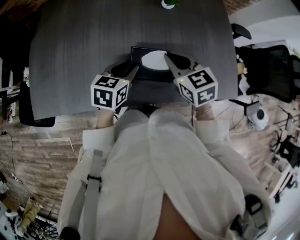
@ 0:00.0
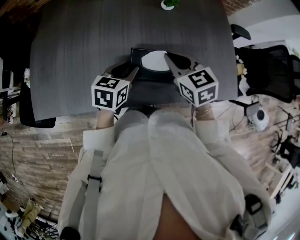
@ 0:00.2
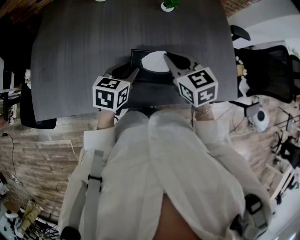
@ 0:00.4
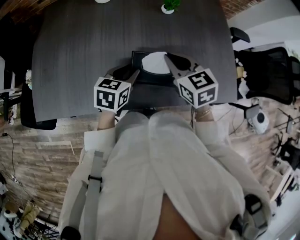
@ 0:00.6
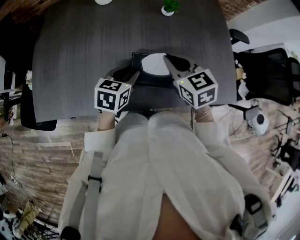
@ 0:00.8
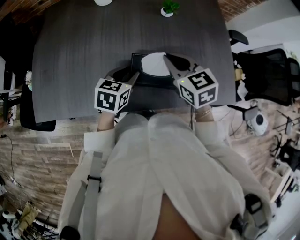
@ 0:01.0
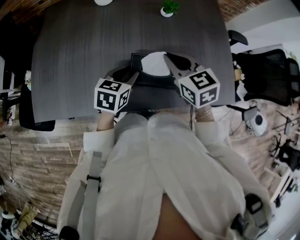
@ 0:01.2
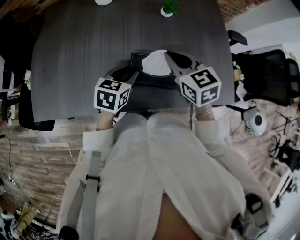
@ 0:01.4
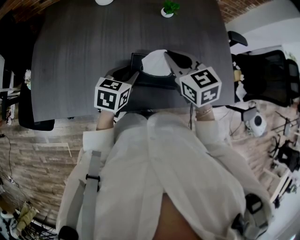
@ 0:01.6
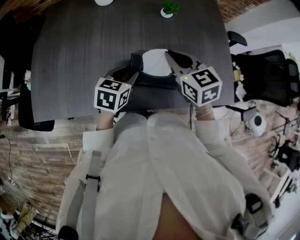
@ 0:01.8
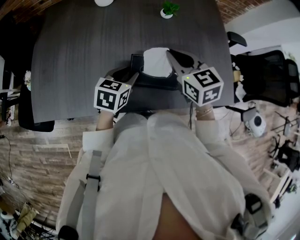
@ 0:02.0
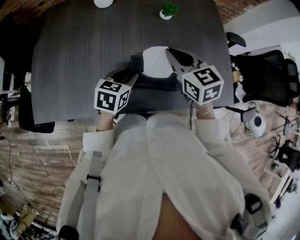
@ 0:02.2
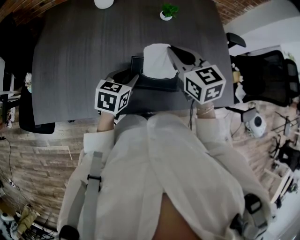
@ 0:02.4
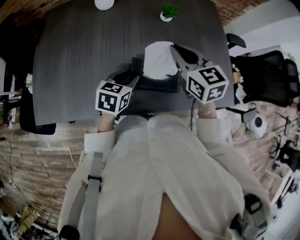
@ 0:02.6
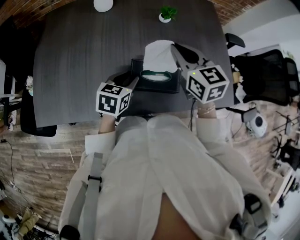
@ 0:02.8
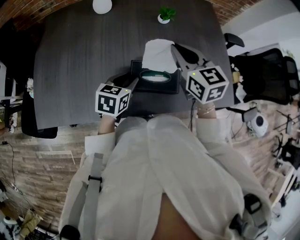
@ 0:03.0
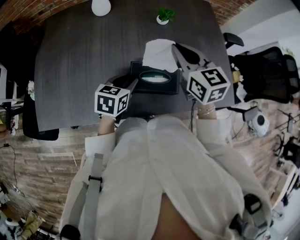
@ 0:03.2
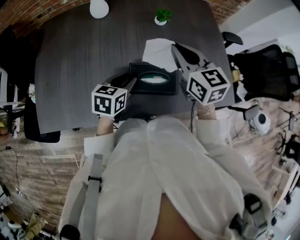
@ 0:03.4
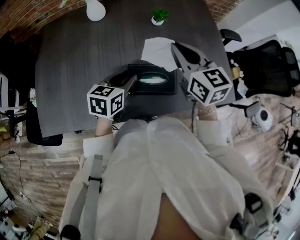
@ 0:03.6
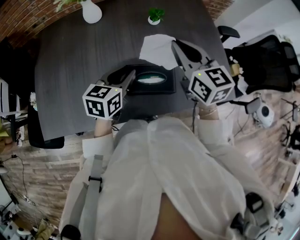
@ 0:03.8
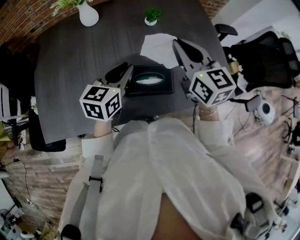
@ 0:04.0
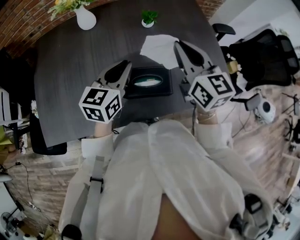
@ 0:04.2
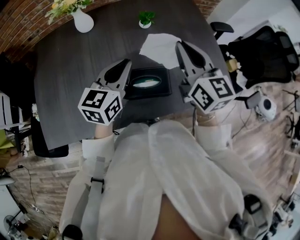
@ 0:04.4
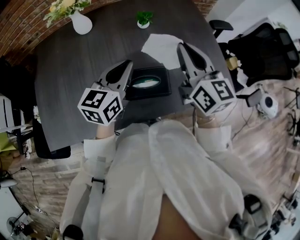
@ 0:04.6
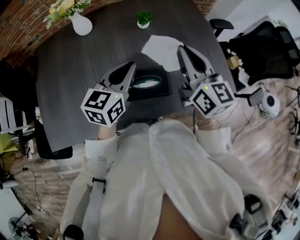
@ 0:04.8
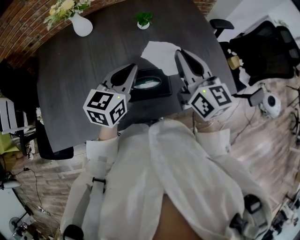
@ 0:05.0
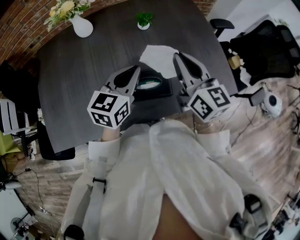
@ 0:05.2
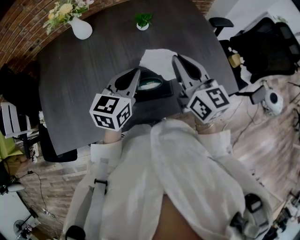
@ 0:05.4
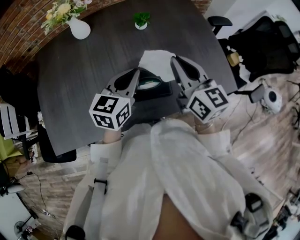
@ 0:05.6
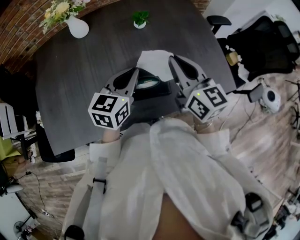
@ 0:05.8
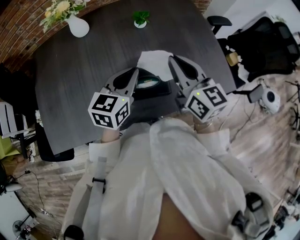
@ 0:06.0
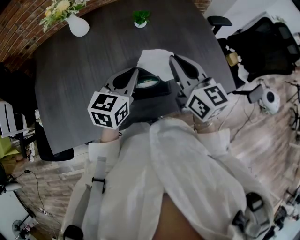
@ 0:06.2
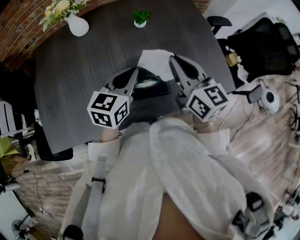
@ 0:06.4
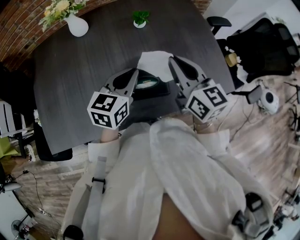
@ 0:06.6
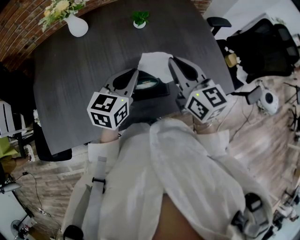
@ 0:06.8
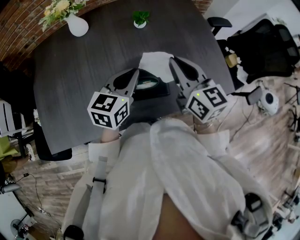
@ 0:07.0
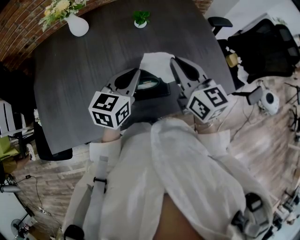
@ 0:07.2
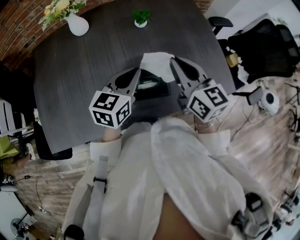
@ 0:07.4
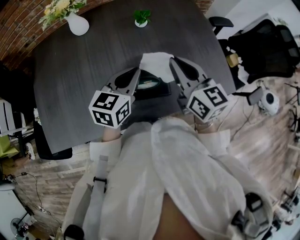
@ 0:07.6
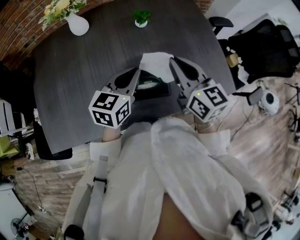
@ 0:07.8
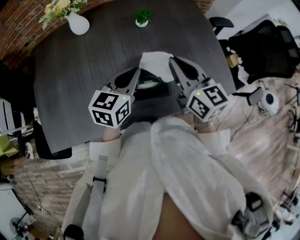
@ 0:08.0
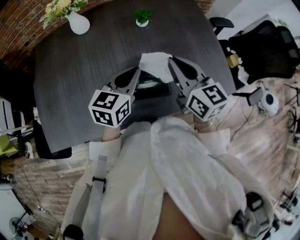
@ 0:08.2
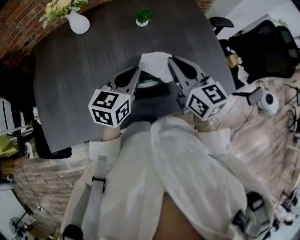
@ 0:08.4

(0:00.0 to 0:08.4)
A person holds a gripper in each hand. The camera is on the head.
0:00.0 - 0:01.4: The grippers make only small movements.
0:01.4 - 0:02.8: The right gripper ends up about 5 cm from where it was.
0:02.8 - 0:04.2: The right gripper shifts about 10 cm upward and to the right. The left gripper shifts approximately 15 cm upward and forward, swivels roughly 20 degrees, and closes up.
0:04.2 - 0:05.6: The grippers move only a little.
0:05.6 - 0:07.0: The two grippers keep their place.
0:07.0 - 0:08.4: The grippers stay close to where they were, moving slightly.

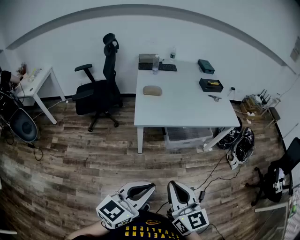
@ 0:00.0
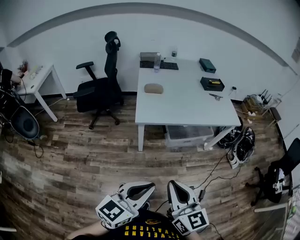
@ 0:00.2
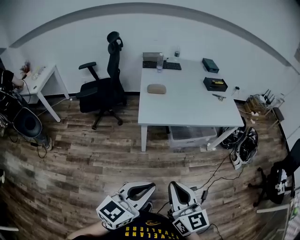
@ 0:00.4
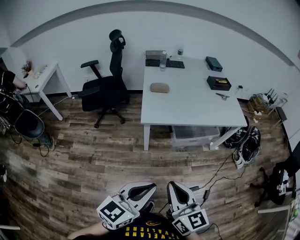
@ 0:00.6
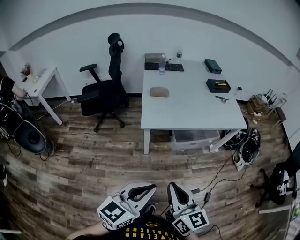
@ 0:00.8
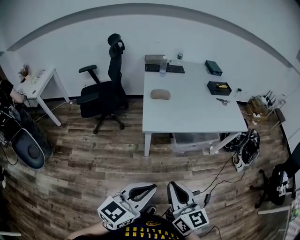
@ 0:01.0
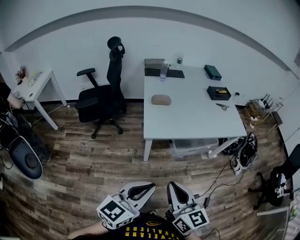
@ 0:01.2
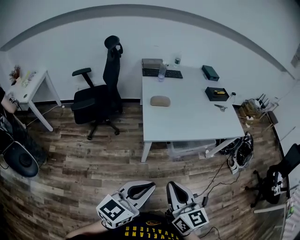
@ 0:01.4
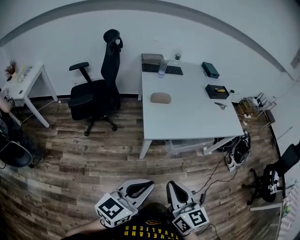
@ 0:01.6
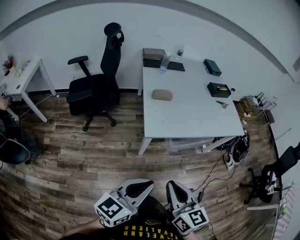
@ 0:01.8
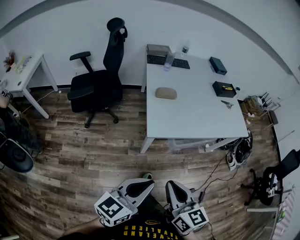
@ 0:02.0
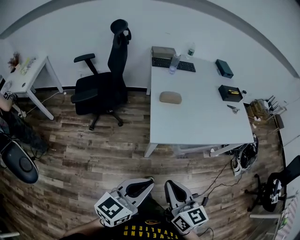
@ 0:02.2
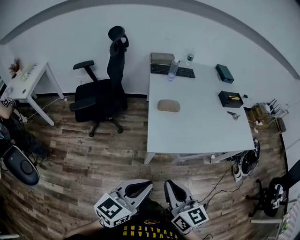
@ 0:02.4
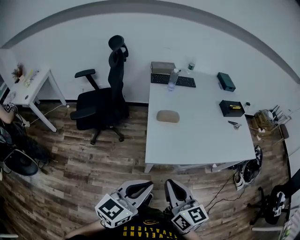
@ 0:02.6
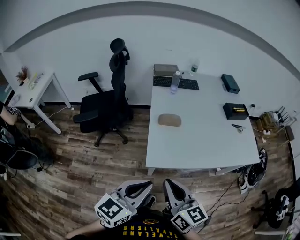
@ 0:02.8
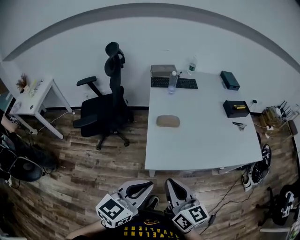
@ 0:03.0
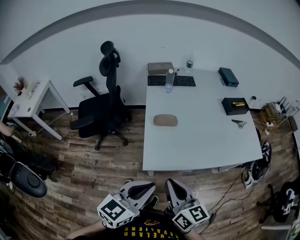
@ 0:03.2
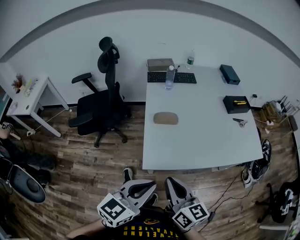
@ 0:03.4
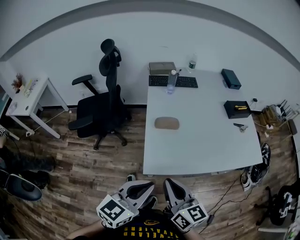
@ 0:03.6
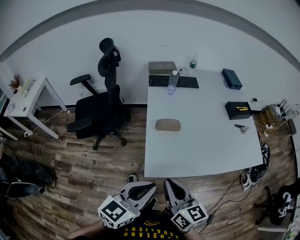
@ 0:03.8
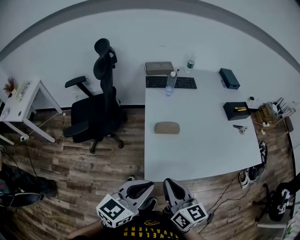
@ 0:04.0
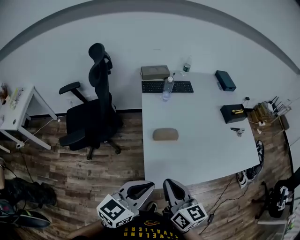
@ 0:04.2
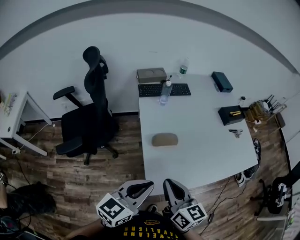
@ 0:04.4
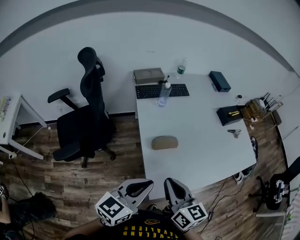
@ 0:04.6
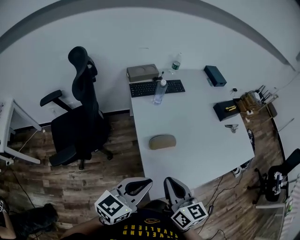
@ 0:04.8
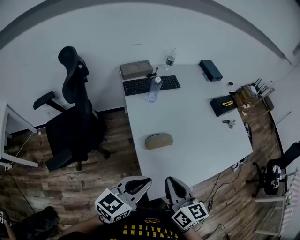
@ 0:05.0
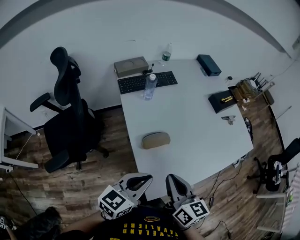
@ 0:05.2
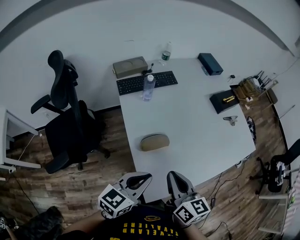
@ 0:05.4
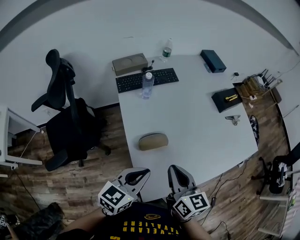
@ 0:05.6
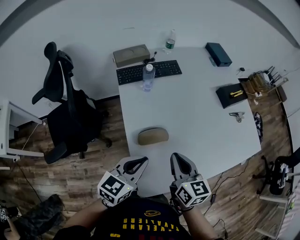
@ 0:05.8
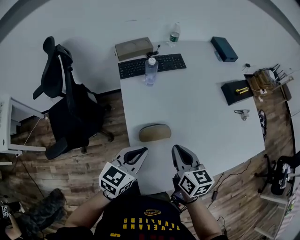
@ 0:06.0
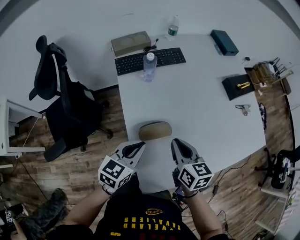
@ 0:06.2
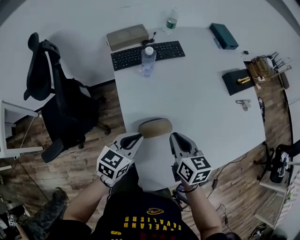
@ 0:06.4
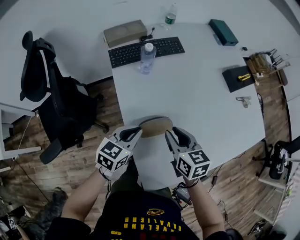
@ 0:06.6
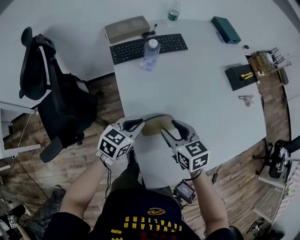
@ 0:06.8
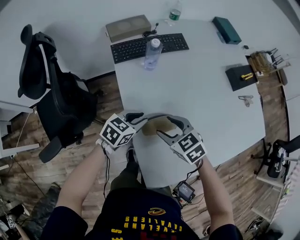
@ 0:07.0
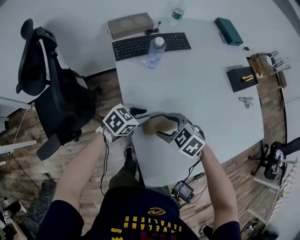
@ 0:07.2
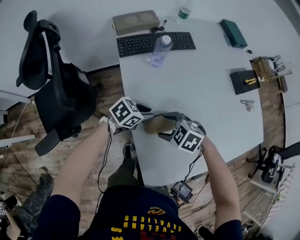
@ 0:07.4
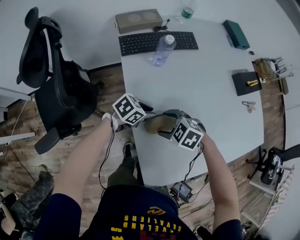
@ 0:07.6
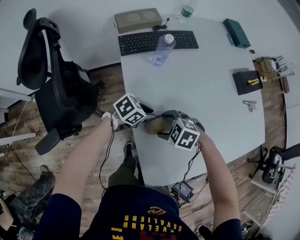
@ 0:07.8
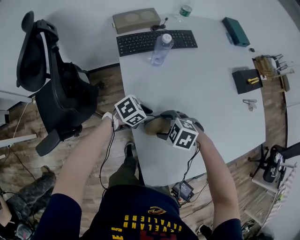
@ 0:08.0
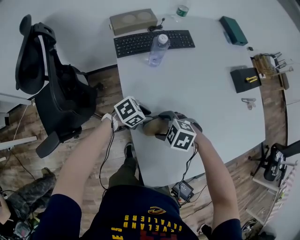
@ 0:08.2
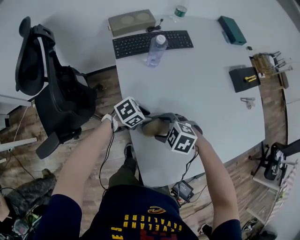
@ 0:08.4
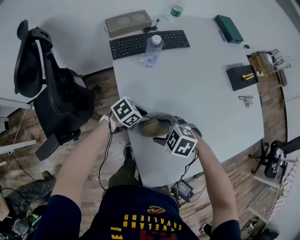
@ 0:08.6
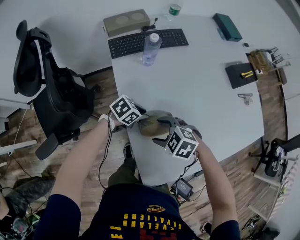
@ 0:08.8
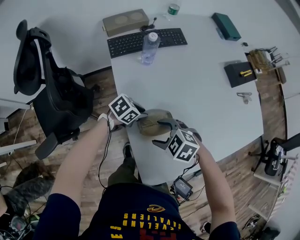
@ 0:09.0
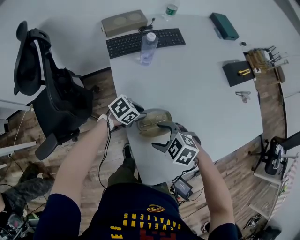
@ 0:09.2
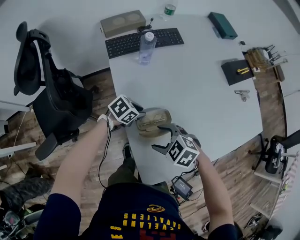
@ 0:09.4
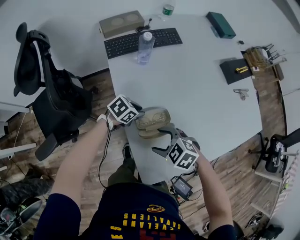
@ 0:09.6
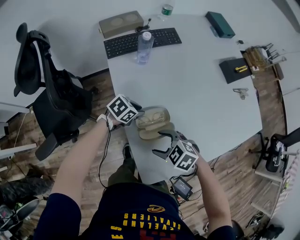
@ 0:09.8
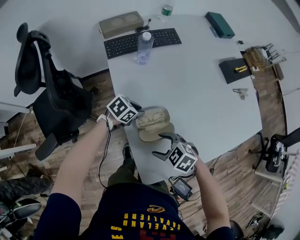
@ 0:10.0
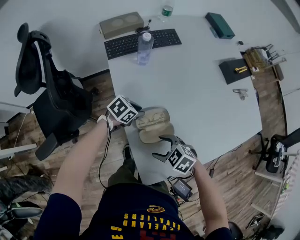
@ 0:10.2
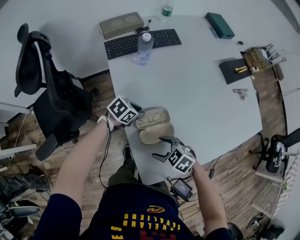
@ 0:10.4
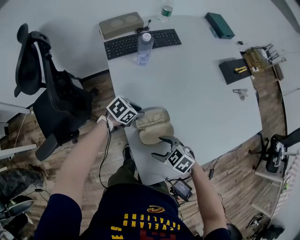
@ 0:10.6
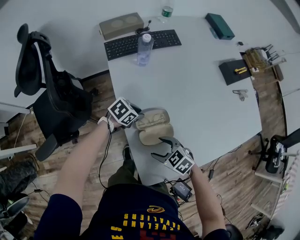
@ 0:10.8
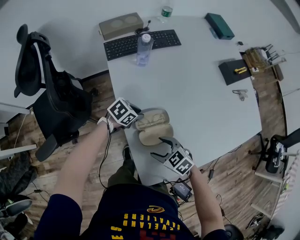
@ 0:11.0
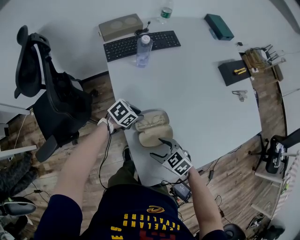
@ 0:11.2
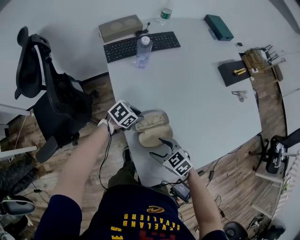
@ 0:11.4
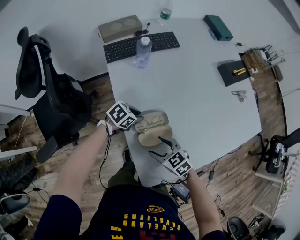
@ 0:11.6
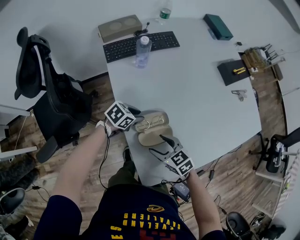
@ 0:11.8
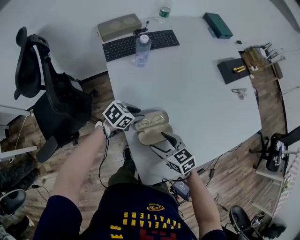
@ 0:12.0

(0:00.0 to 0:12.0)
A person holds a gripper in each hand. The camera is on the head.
0:00.0 - 0:01.6: The grippers both shift to the left and forward by roughly 20 cm.
0:01.6 - 0:03.0: Both grippers travel together forward, about 20 cm.
0:03.0 - 0:04.4: The two grippers go approximately 20 cm forward and to the left.
0:04.4 - 0:06.0: Both grippers move forward and downward, approximately 20 cm.
0:06.0 - 0:07.6: The grippers both shift downward by some 15 cm. The left gripper turns by roughly 40 degrees, and opens up, while the right gripper tilts its fingers approximately 40 degrees downward, and opens.
0:07.6 - 0:09.0: The right gripper shifts by some 5 cm.
0:09.0 - 0:10.4: The right gripper shifts by some 10 cm.
0:10.4 - 0:12.0: The right gripper changes its angle by roughly 30 degrees.

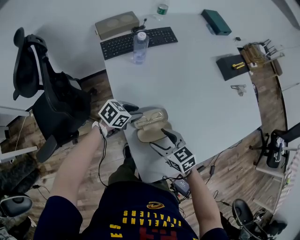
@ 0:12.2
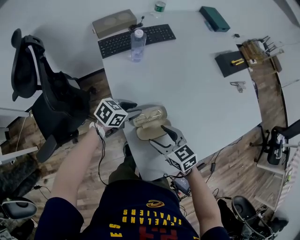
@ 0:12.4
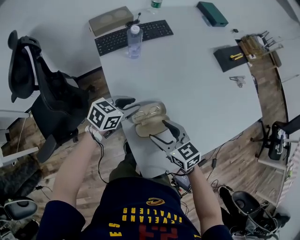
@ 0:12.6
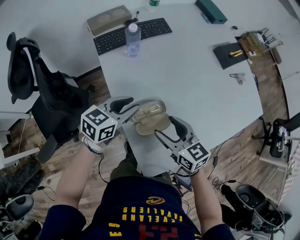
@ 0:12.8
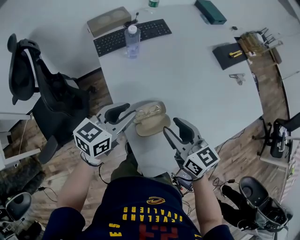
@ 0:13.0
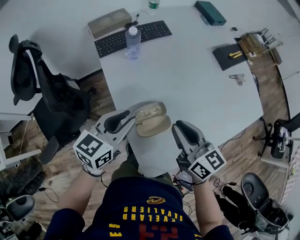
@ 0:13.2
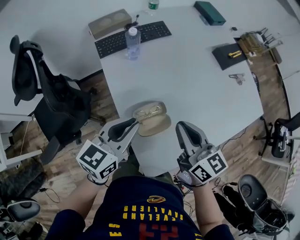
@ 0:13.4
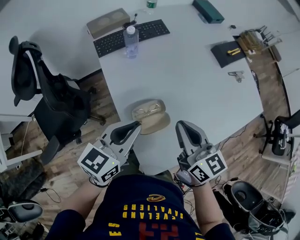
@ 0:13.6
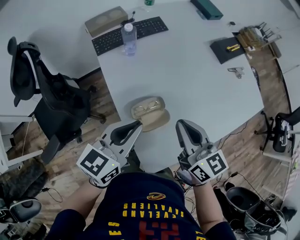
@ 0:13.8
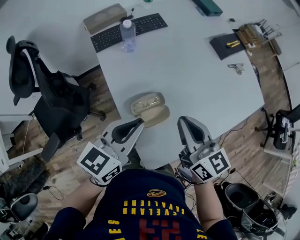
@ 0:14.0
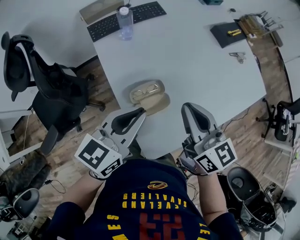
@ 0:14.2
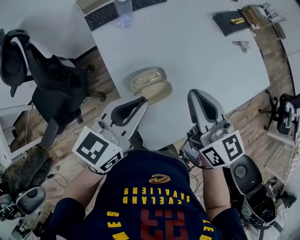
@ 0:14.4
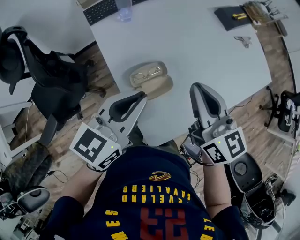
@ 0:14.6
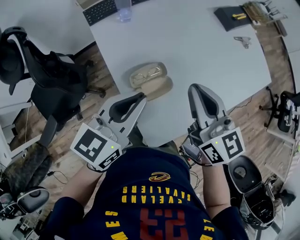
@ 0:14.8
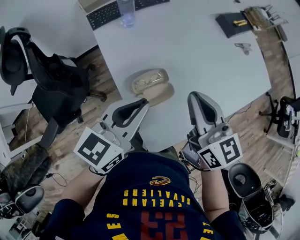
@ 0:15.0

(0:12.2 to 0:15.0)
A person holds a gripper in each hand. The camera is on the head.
0:12.2 - 0:13.6: The grippers both shift upward by approximately 20 cm. The right gripper changes its angle by about 40 degrees, and closes. Meanwhile the left gripper turns by about 40 degrees, and closes its fingers.
0:13.6 - 0:15.0: The grippers move only a little.
